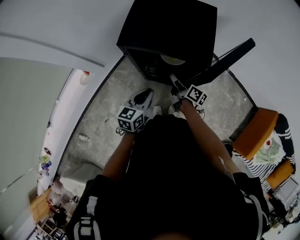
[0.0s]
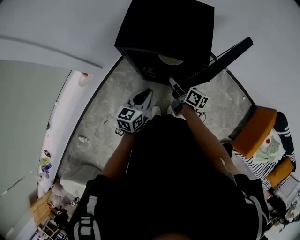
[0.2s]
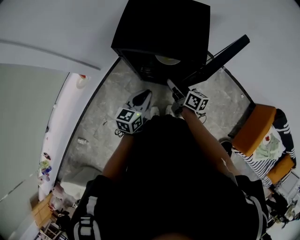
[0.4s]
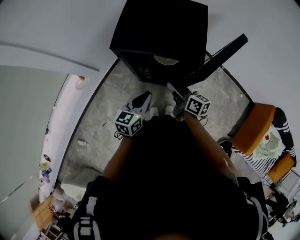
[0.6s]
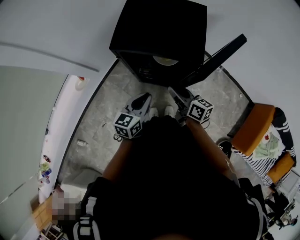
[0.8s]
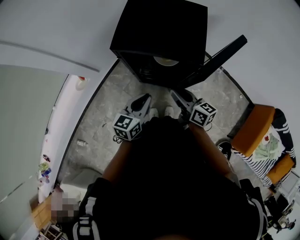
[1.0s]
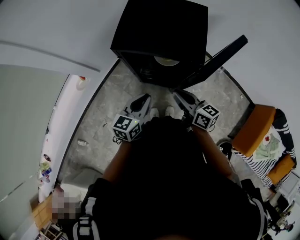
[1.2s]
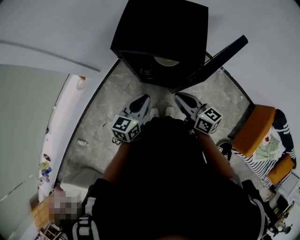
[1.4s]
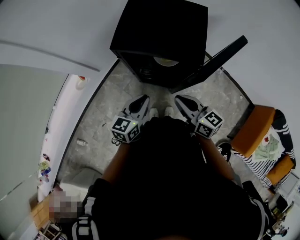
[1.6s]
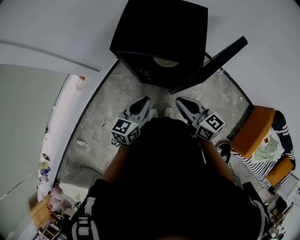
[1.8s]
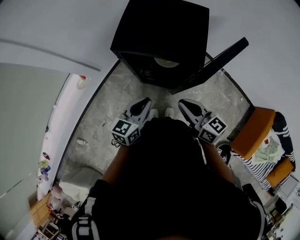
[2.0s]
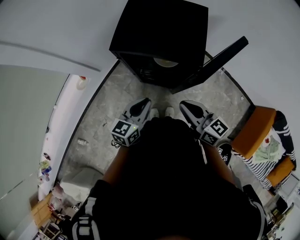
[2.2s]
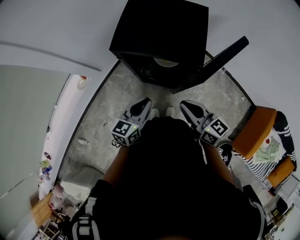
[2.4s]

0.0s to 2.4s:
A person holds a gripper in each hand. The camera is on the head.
0.0s to 1.2s: The right gripper moves upward and backward, about 15 cm, and rotates some 30 degrees.
1.2s to 2.4s: The right gripper ends up approximately 5 cm from where it was.

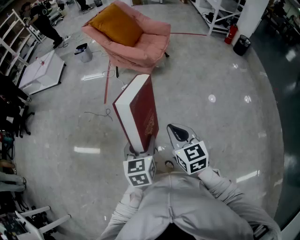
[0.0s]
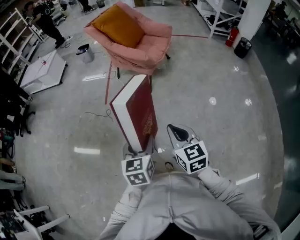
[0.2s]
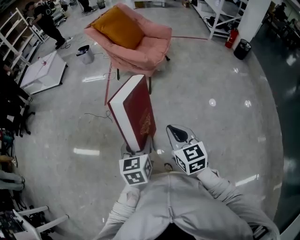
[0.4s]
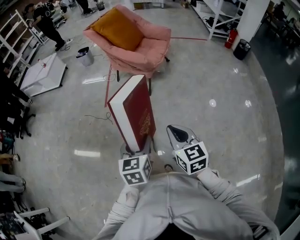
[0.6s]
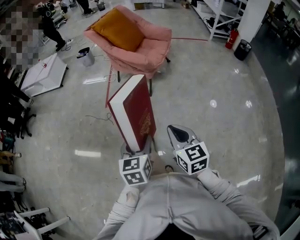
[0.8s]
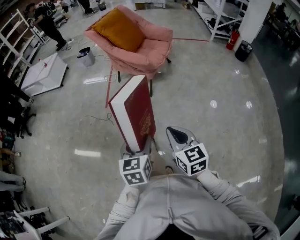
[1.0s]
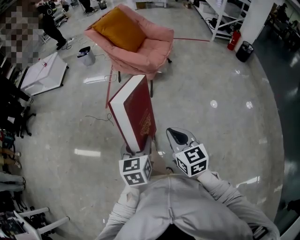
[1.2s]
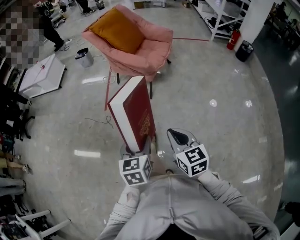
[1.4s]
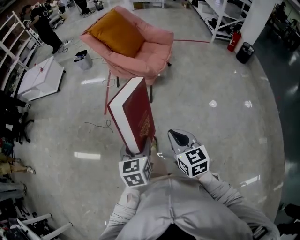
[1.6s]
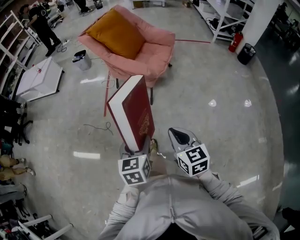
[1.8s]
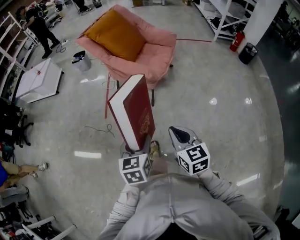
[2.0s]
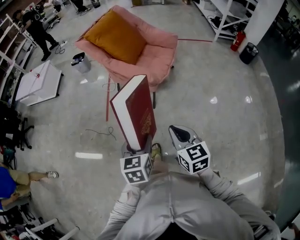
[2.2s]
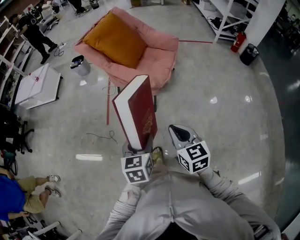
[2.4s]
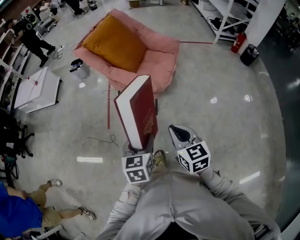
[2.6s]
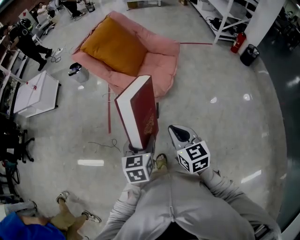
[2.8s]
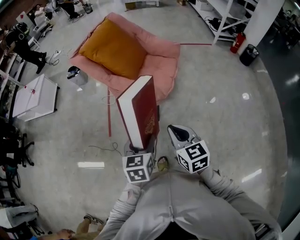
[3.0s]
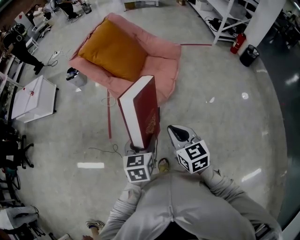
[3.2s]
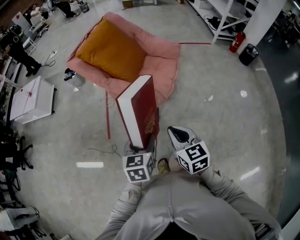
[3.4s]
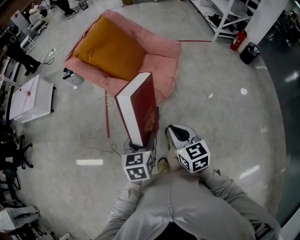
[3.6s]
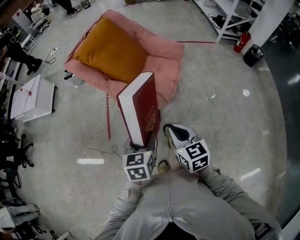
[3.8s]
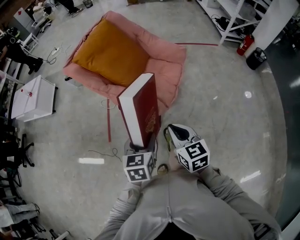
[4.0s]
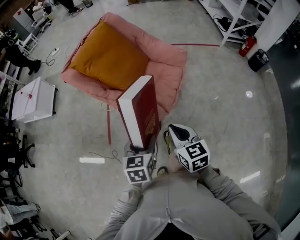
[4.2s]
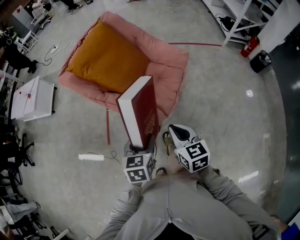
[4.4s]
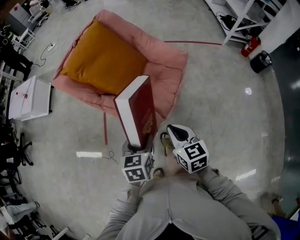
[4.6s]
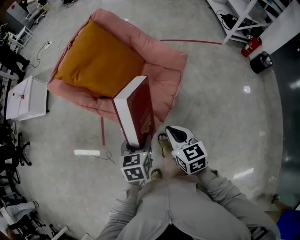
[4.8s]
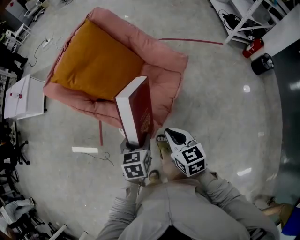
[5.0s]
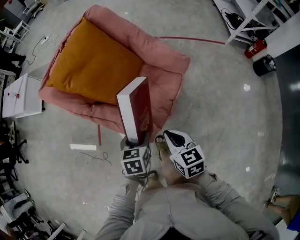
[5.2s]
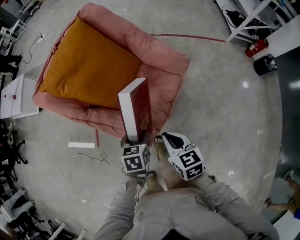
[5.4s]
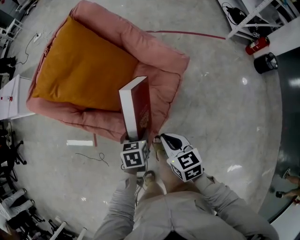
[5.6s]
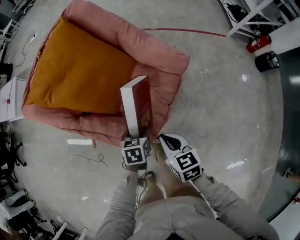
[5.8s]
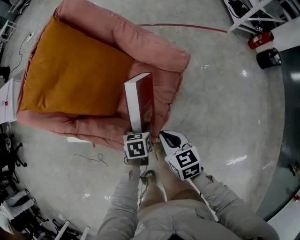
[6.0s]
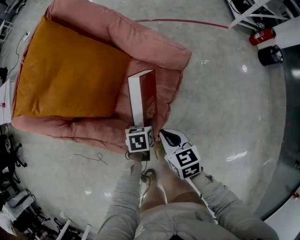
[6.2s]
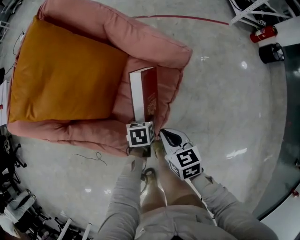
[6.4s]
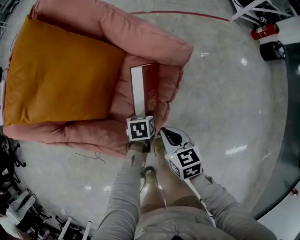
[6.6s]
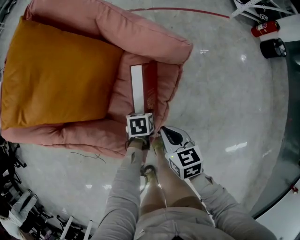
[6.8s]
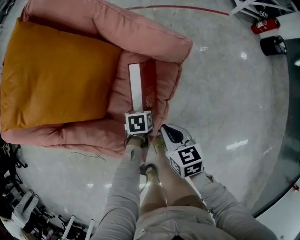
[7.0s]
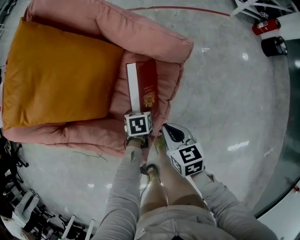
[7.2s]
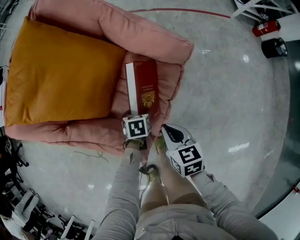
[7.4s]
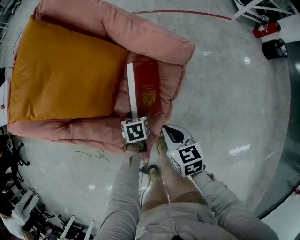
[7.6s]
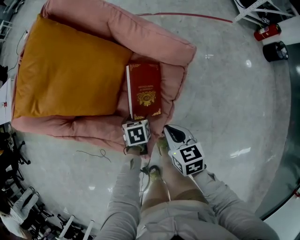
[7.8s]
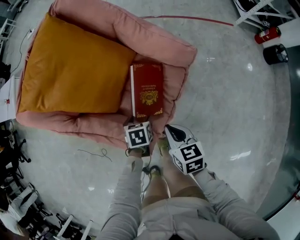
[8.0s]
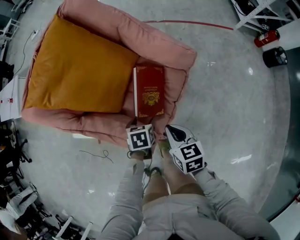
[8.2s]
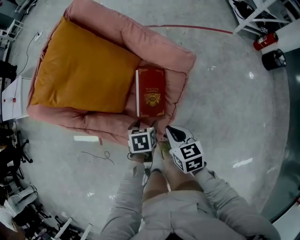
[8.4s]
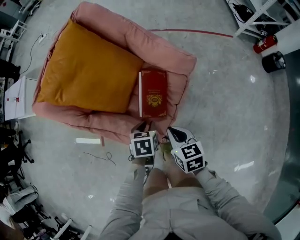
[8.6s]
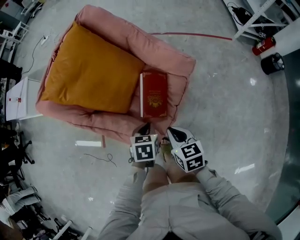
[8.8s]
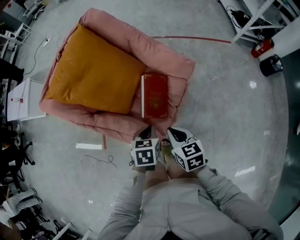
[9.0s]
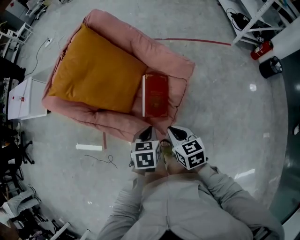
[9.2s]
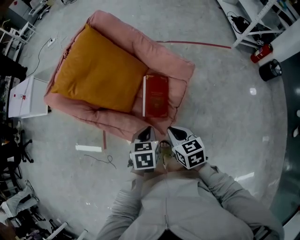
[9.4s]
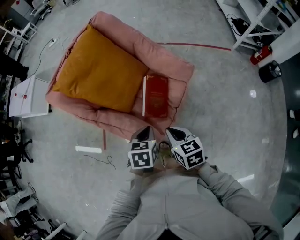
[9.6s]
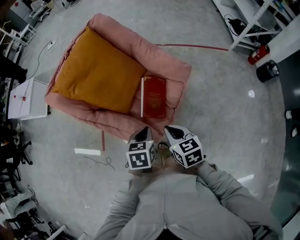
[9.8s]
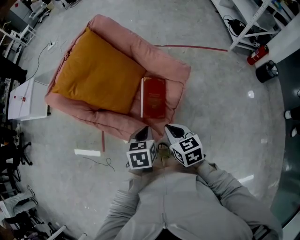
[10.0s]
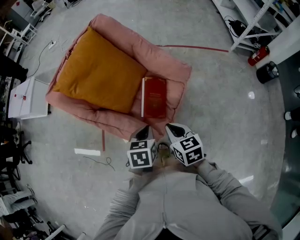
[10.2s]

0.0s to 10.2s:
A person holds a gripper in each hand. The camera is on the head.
0.0s to 1.4s: The two grippers go about 5 cm forward.
1.4s to 3.0s: The grippers both shift forward by approximately 35 cm.
3.0s to 4.4s: The two grippers go about 20 cm forward.
4.4s to 5.8s: The right gripper is displaced forward and downward by about 20 cm. Meanwhile the left gripper shifts some 30 cm forward, downward and to the right, and turns by approximately 20 degrees.
5.8s to 7.2s: The left gripper travels downward and forward by about 20 cm. Meanwhile the right gripper is displaced downward and forward by about 10 cm.
7.2s to 8.8s: The right gripper goes roughly 10 cm upward; the left gripper shifts approximately 20 cm upward, and closes.
8.8s to 10.2s: The left gripper is displaced upward by approximately 10 cm.

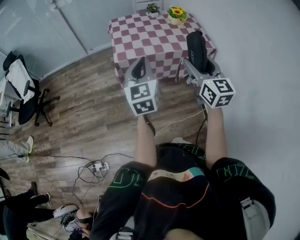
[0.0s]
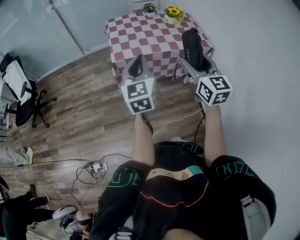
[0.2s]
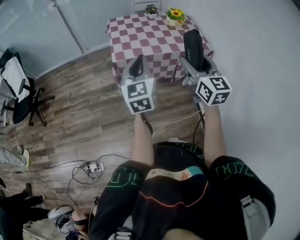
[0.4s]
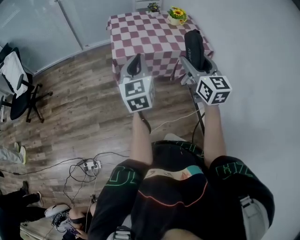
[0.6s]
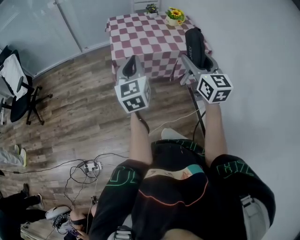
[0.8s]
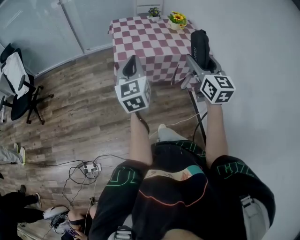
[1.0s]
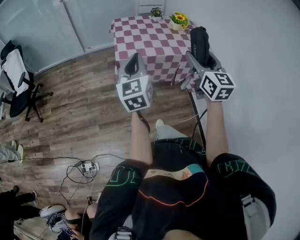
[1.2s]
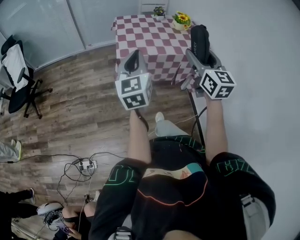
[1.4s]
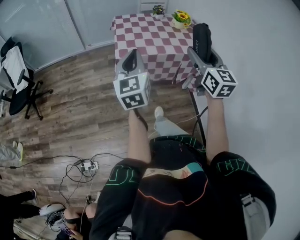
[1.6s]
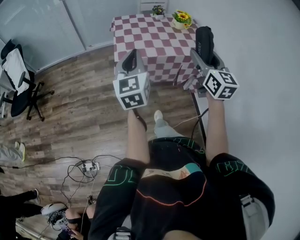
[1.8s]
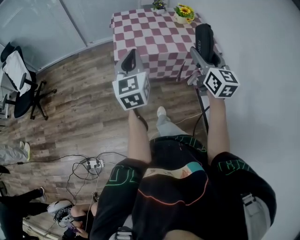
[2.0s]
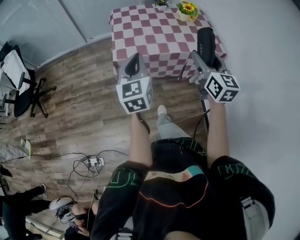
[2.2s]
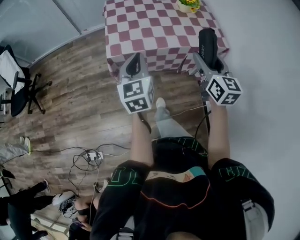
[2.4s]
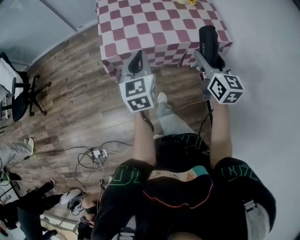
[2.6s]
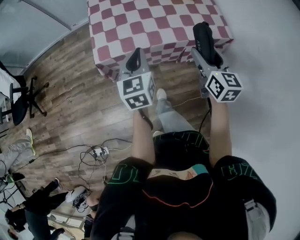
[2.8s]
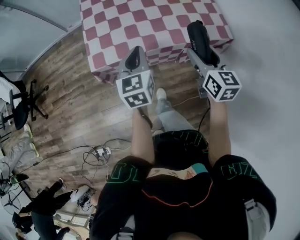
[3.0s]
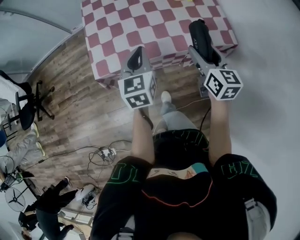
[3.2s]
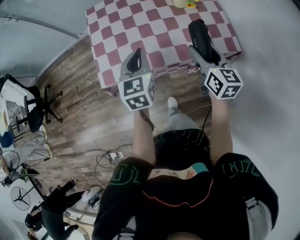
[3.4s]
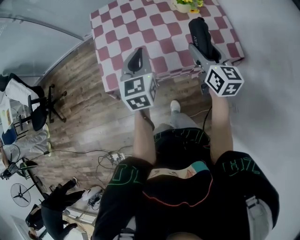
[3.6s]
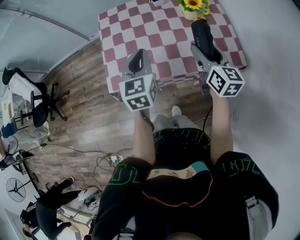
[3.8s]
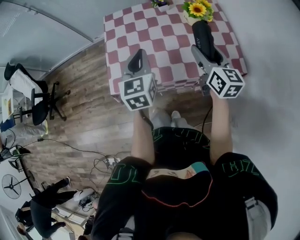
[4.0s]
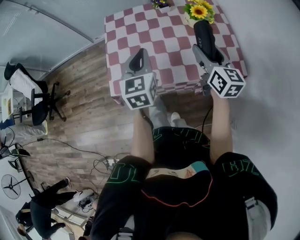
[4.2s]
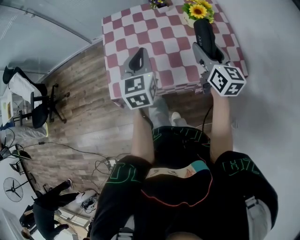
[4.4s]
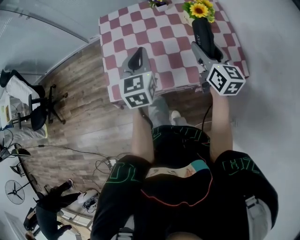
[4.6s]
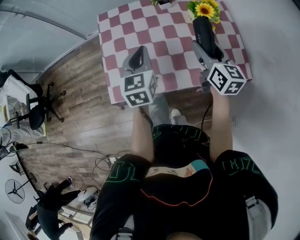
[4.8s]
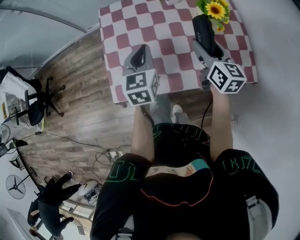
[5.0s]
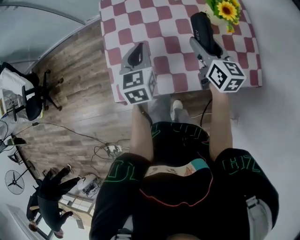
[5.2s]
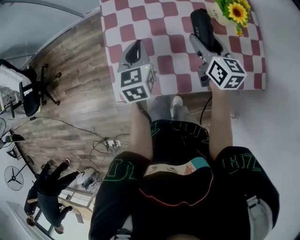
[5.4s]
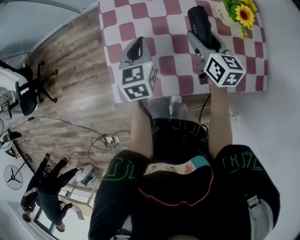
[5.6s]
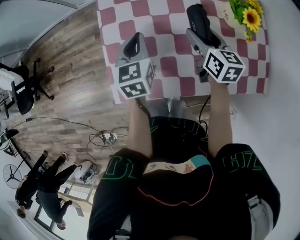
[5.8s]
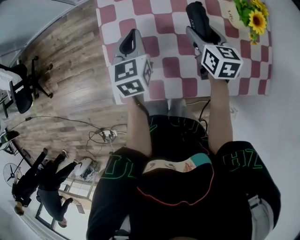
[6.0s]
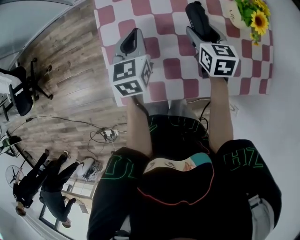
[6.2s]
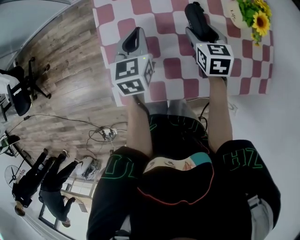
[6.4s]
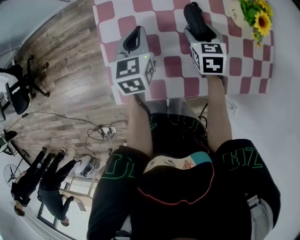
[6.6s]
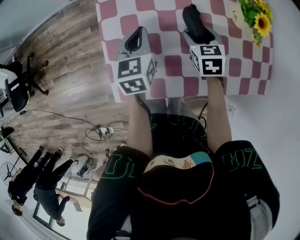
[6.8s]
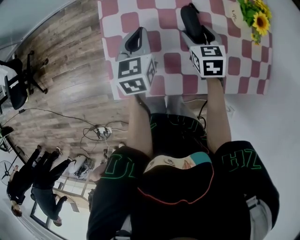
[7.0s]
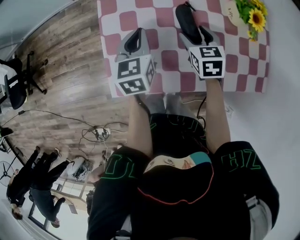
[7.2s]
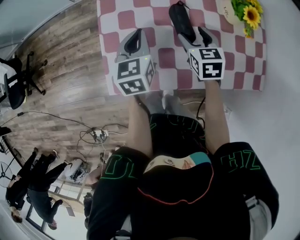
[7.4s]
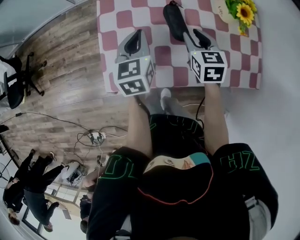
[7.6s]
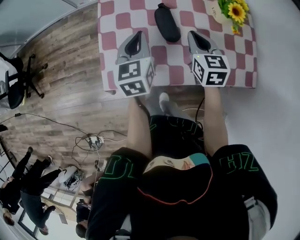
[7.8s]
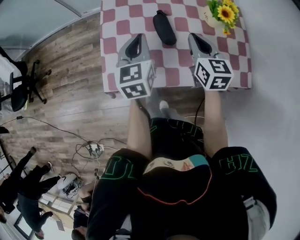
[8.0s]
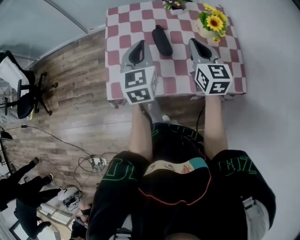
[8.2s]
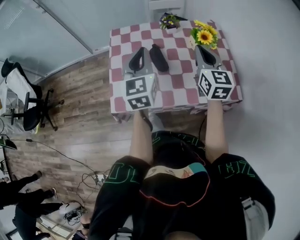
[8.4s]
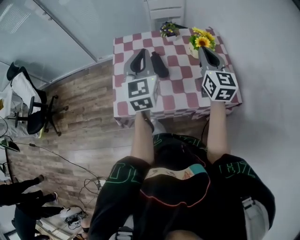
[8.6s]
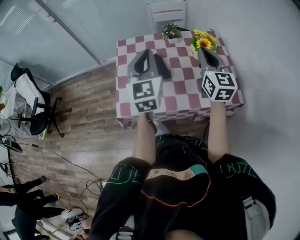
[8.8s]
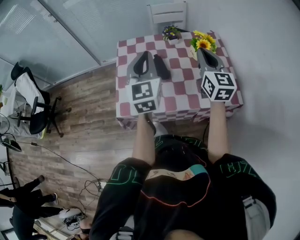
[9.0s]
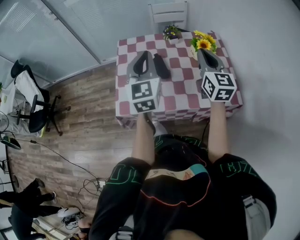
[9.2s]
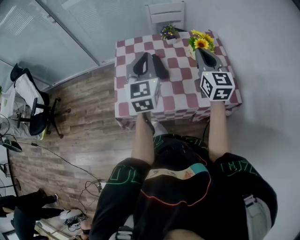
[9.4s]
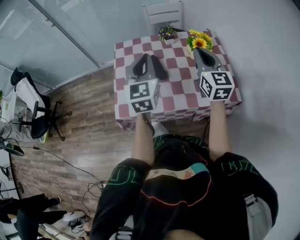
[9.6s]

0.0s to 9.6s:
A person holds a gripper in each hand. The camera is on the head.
0.0s to 1.6s: The left gripper travels to the left by some 5 cm.
1.6s to 3.2s: Both grippers move forward, downward and to the right, roughly 35 cm. The left gripper changes its angle by about 30 degrees; the right gripper swivels about 30 degrees.
3.2s to 4.8s: Both grippers travel together forward, about 15 cm.
4.8s to 6.4s: The left gripper shifts roughly 20 cm forward, downward and to the left. The right gripper shifts roughly 25 cm downward, forward and to the left, and tips its fingers downward by about 30 degrees.
6.4s to 8.0s: The left gripper goes about 15 cm backward and upward. The right gripper shifts roughly 15 cm upward and backward, rotates roughly 20 degrees, and closes up.
8.0s to 9.6s: The right gripper moves upward and to the right, some 15 cm, and changes its angle by approximately 20 degrees. The left gripper goes approximately 15 cm upward, and rotates about 20 degrees.

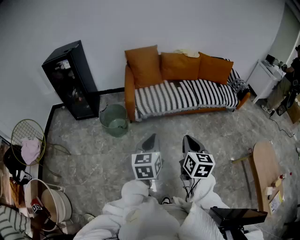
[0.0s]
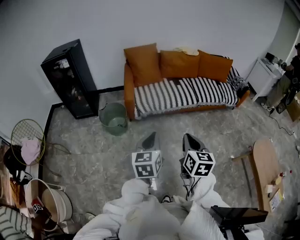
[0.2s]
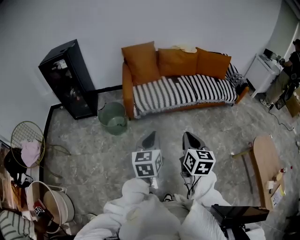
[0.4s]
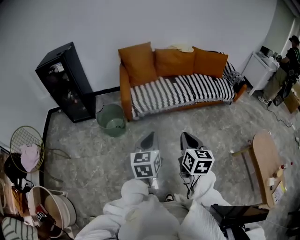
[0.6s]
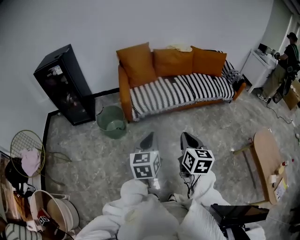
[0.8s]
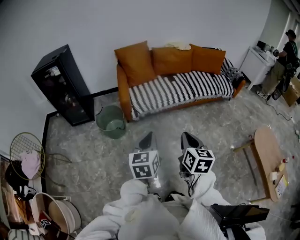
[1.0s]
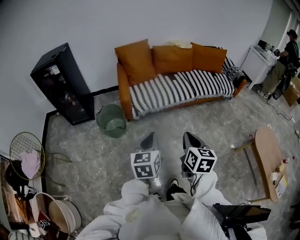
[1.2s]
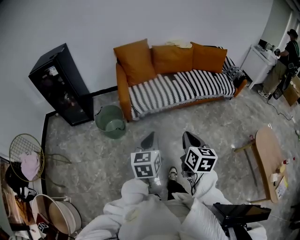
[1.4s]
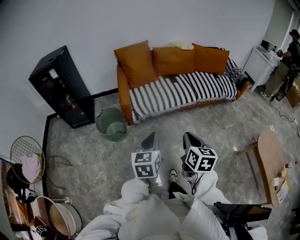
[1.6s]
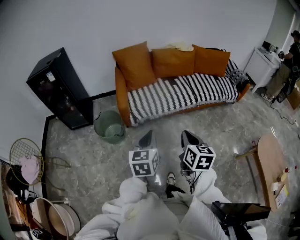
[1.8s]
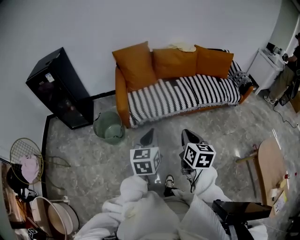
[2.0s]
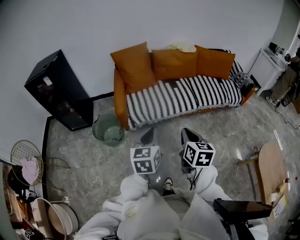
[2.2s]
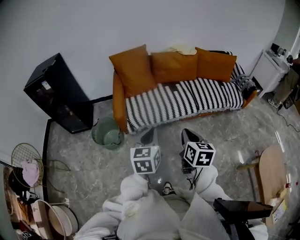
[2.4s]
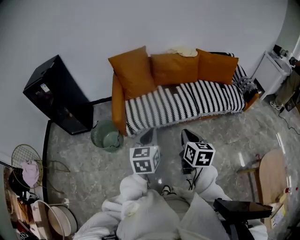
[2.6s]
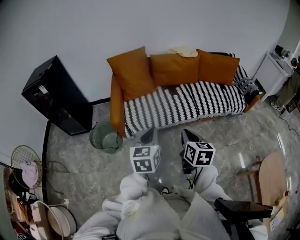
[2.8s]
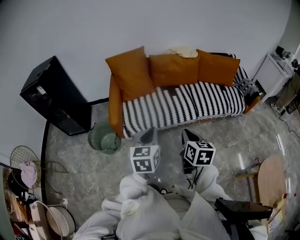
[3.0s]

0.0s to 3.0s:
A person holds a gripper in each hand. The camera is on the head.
0.0s to 1.6s: The grippers both shift forward by some 10 cm.
1.6s to 3.0s: Both grippers travel together forward and to the right, roughly 30 cm.
